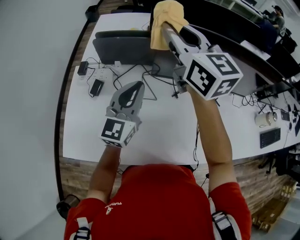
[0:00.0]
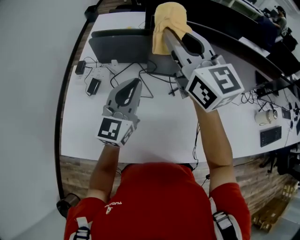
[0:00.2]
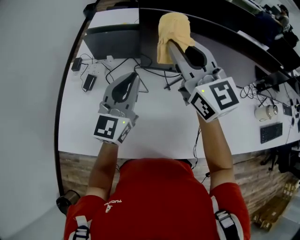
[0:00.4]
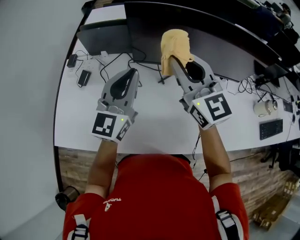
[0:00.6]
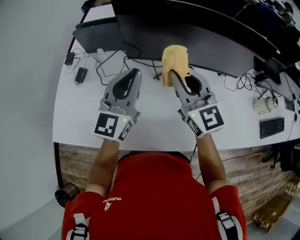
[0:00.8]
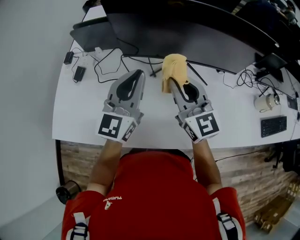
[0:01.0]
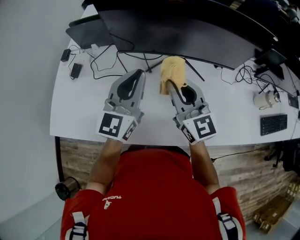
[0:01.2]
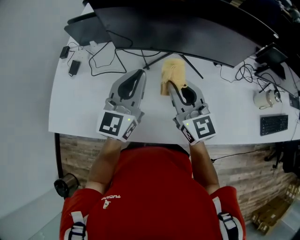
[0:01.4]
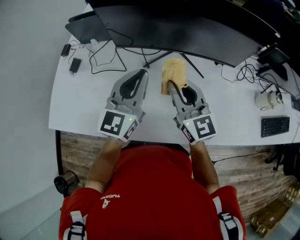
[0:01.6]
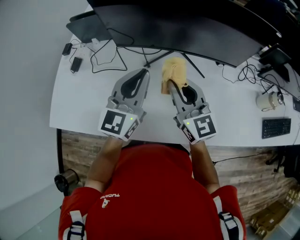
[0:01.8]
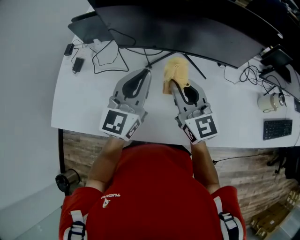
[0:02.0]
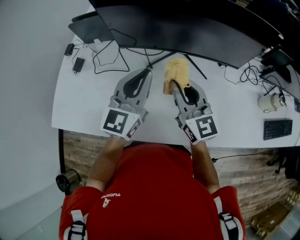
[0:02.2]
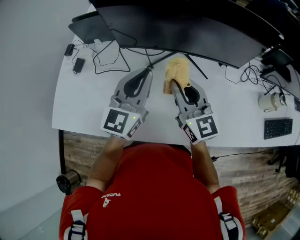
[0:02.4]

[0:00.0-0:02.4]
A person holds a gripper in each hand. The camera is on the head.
0:00.0 to 0:01.2: The right gripper shifts some 35 cm to the right, downward and backward; the left gripper goes about 20 cm to the right and backward.
0:01.2 to 0:02.4: The grippers make only small movements.

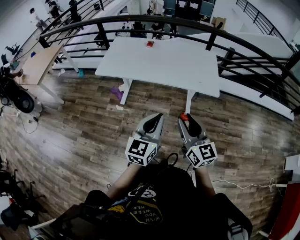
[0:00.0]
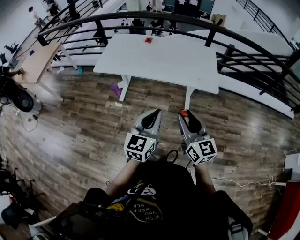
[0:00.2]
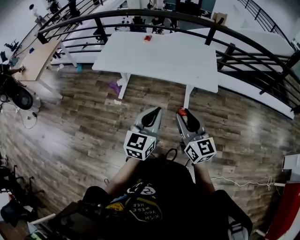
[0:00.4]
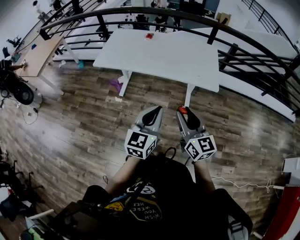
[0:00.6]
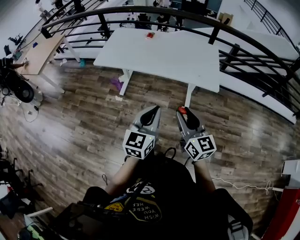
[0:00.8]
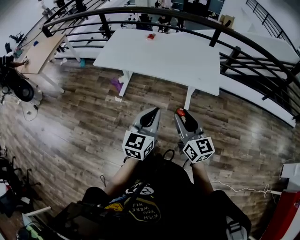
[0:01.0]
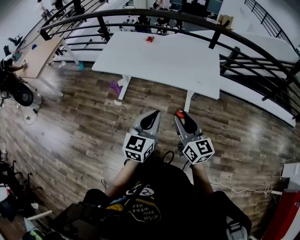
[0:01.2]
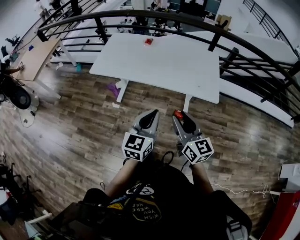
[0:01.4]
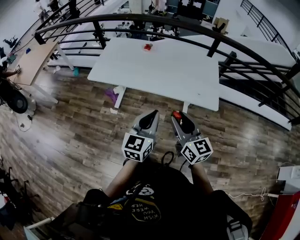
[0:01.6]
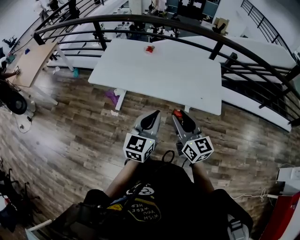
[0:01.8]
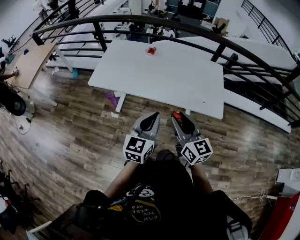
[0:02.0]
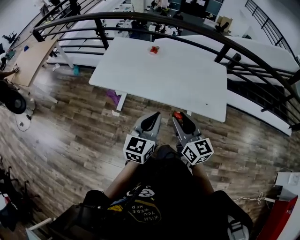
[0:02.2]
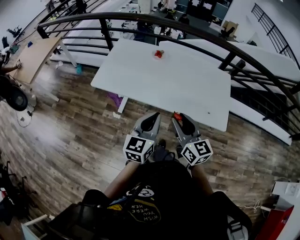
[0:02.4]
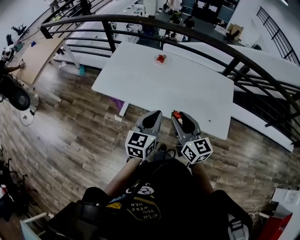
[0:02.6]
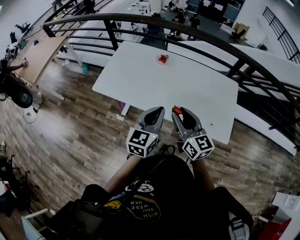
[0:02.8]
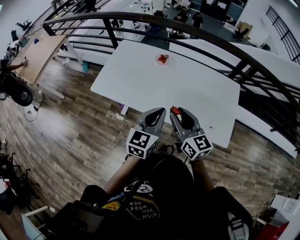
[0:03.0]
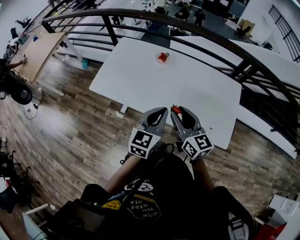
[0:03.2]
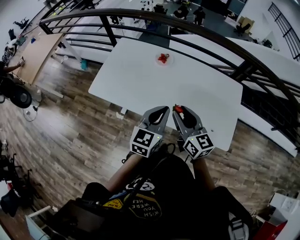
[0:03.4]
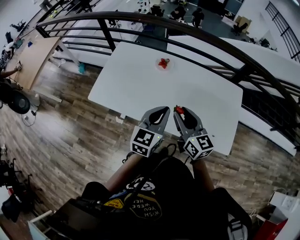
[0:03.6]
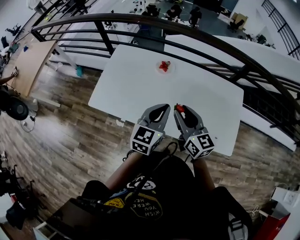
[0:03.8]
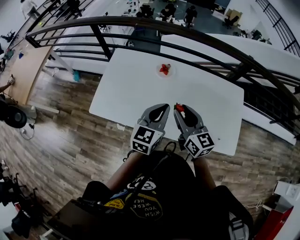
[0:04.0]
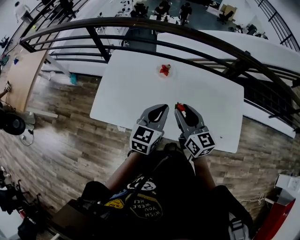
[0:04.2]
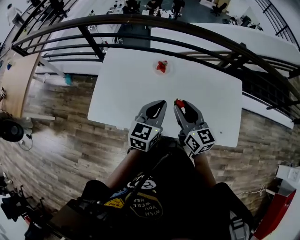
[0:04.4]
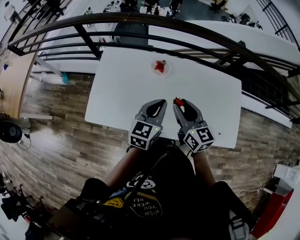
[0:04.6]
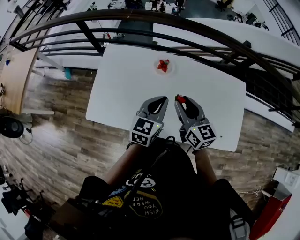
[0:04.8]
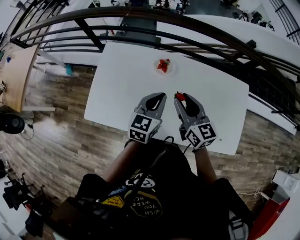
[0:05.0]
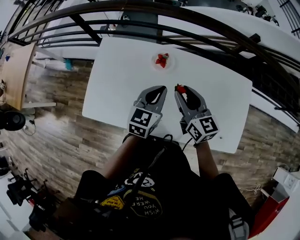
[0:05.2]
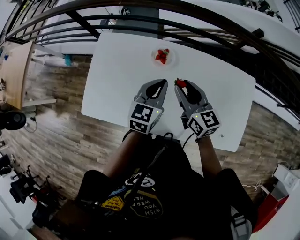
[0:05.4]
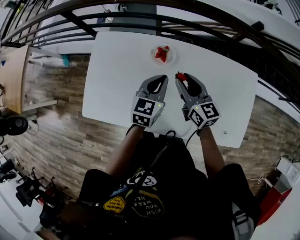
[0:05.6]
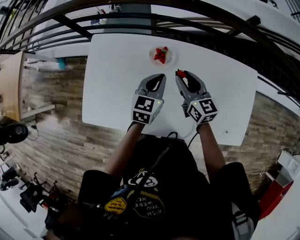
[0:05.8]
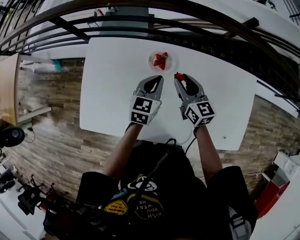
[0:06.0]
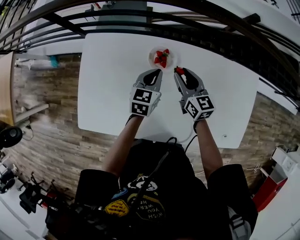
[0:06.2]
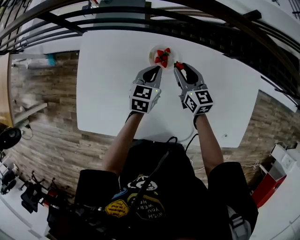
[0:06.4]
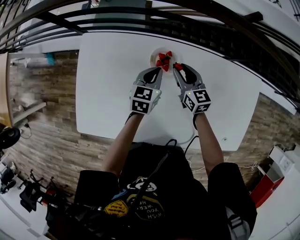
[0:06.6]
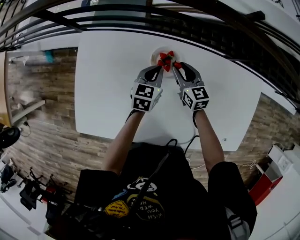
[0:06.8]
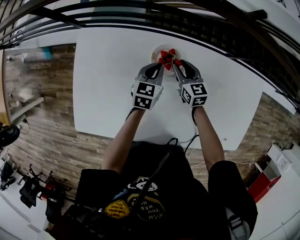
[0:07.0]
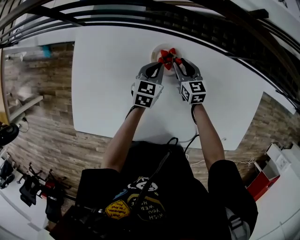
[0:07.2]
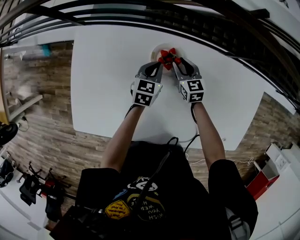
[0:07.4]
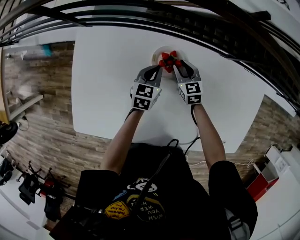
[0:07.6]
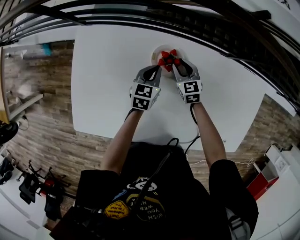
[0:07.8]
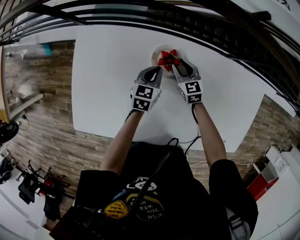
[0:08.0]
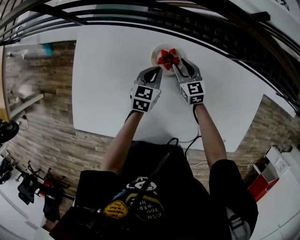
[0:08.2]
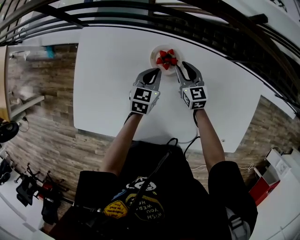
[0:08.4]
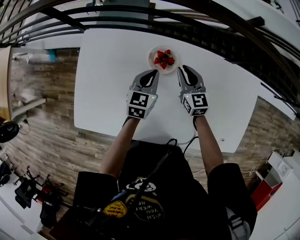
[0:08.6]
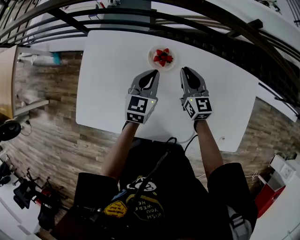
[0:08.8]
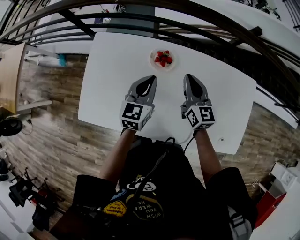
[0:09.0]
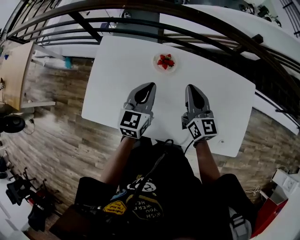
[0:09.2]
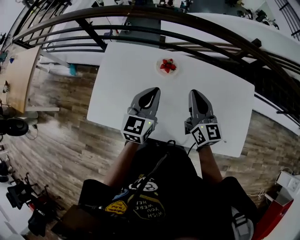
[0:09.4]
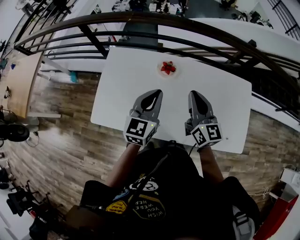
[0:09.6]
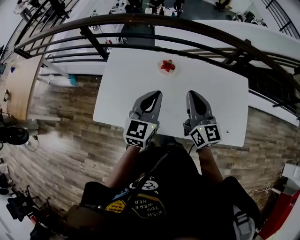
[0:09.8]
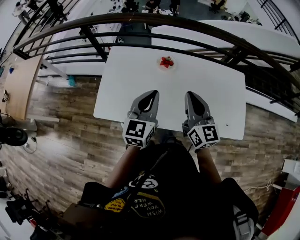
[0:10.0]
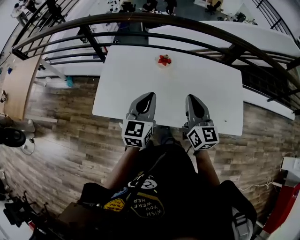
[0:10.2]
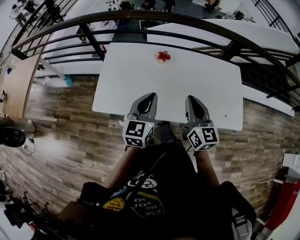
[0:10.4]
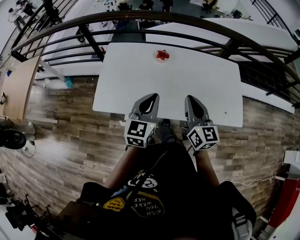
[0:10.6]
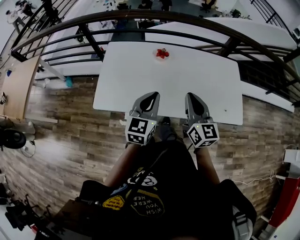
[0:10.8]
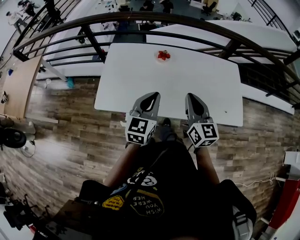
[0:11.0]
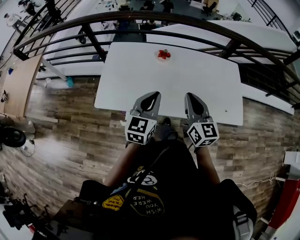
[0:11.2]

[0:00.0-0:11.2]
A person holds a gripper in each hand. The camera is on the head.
0:00.0 to 0:01.6: Both grippers travel together forward, approximately 15 cm.
0:01.6 to 0:03.2: The two grippers go about 30 cm forward.
0:03.2 to 0:04.8: The two grippers go some 25 cm forward and to the left.
0:04.8 to 0:06.4: Both grippers move forward and downward, some 30 cm.
0:06.4 to 0:08.0: The left gripper shifts about 10 cm downward. Meanwhile the right gripper travels downward by some 15 cm, and rotates some 20 degrees.
0:08.0 to 0:09.6: Both grippers move upward and backward, approximately 40 cm. The left gripper turns by roughly 30 degrees, while the right gripper points its fingers roughly 40 degrees further upward, and closes its fingers.
0:09.6 to 0:11.2: Both grippers travel together backward, roughly 20 cm.

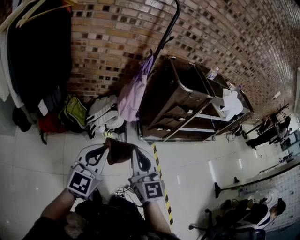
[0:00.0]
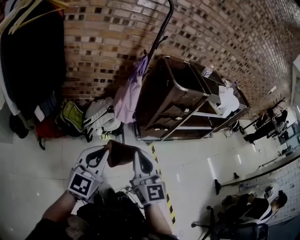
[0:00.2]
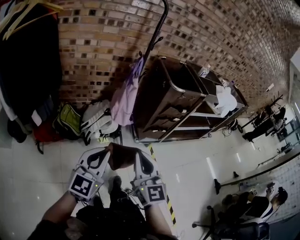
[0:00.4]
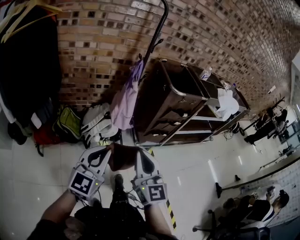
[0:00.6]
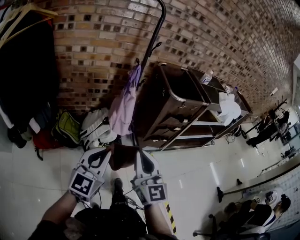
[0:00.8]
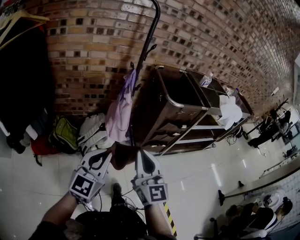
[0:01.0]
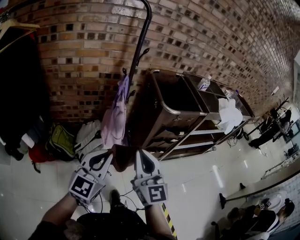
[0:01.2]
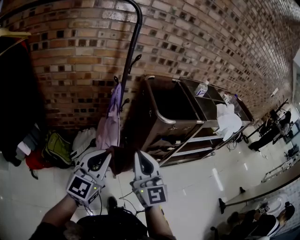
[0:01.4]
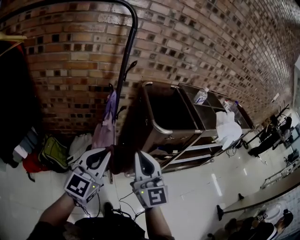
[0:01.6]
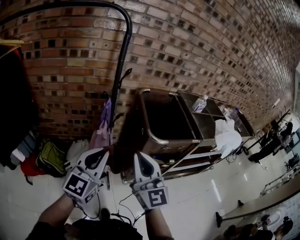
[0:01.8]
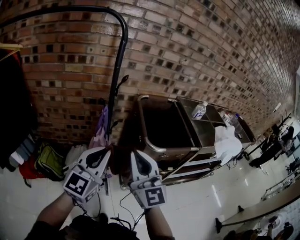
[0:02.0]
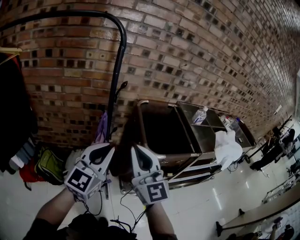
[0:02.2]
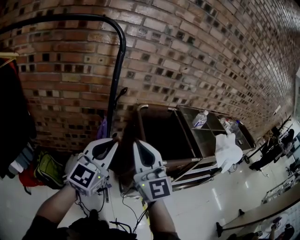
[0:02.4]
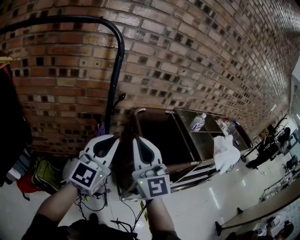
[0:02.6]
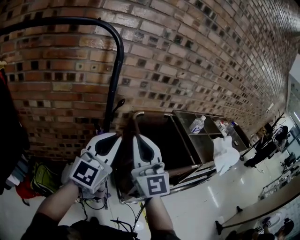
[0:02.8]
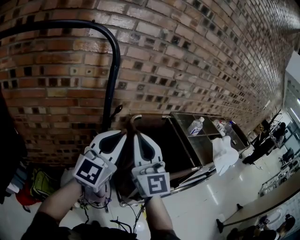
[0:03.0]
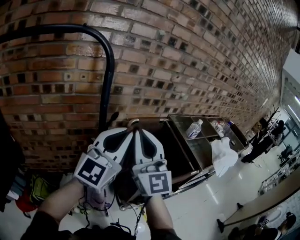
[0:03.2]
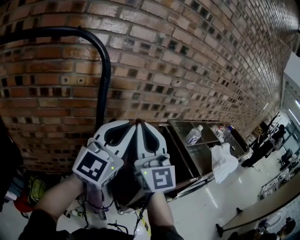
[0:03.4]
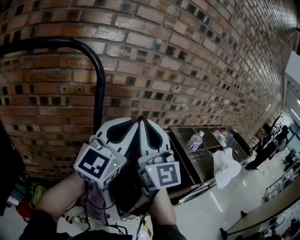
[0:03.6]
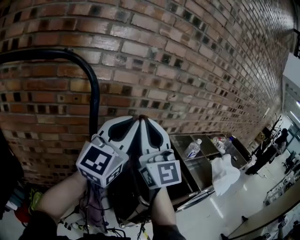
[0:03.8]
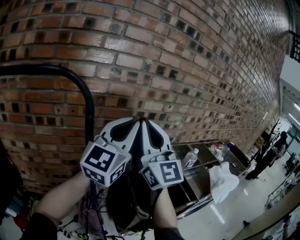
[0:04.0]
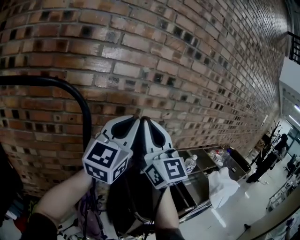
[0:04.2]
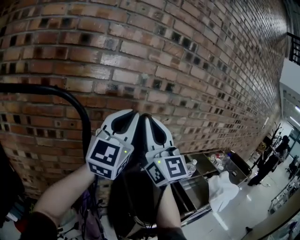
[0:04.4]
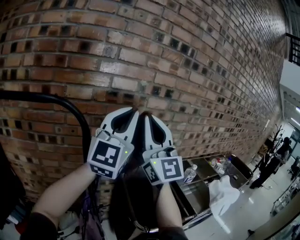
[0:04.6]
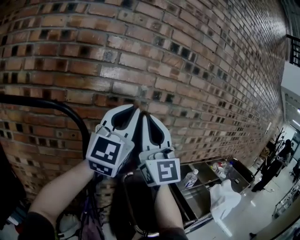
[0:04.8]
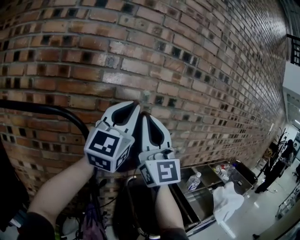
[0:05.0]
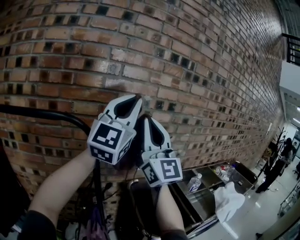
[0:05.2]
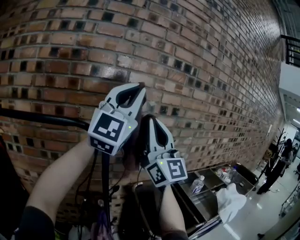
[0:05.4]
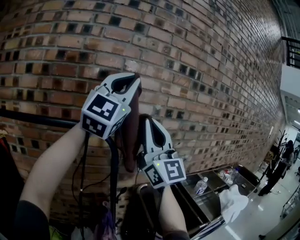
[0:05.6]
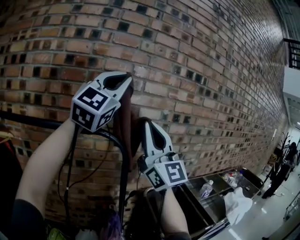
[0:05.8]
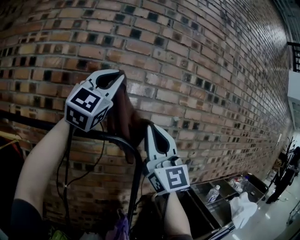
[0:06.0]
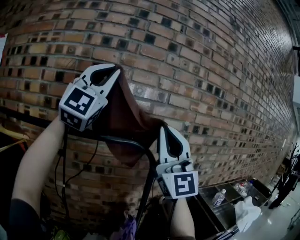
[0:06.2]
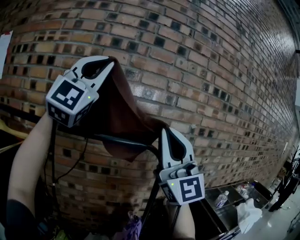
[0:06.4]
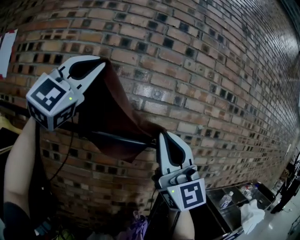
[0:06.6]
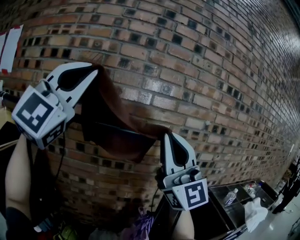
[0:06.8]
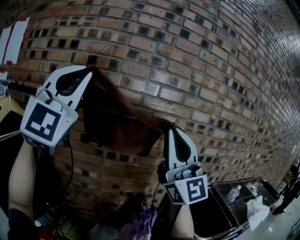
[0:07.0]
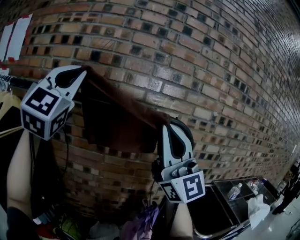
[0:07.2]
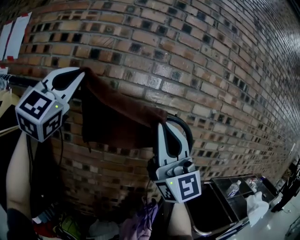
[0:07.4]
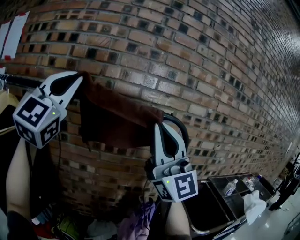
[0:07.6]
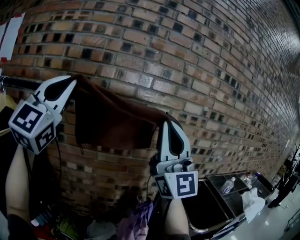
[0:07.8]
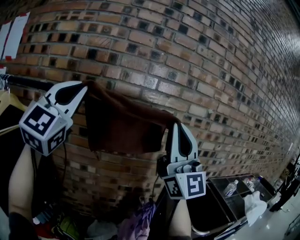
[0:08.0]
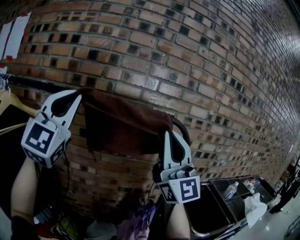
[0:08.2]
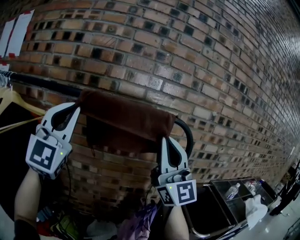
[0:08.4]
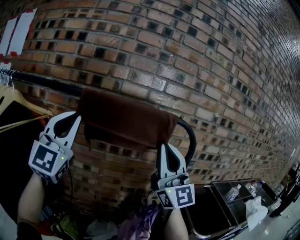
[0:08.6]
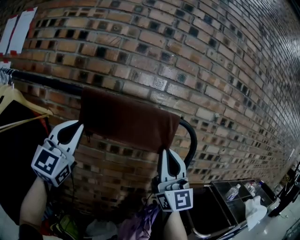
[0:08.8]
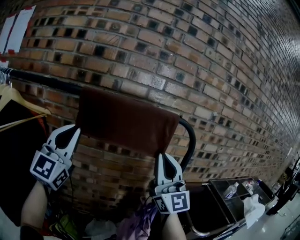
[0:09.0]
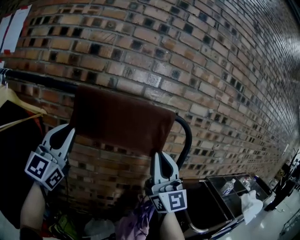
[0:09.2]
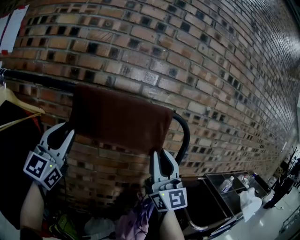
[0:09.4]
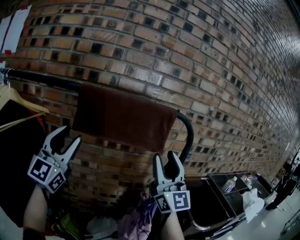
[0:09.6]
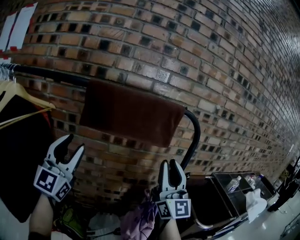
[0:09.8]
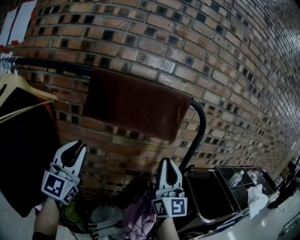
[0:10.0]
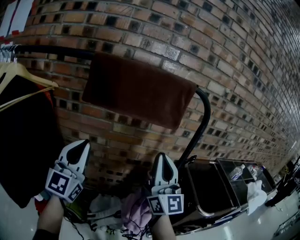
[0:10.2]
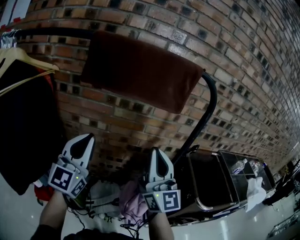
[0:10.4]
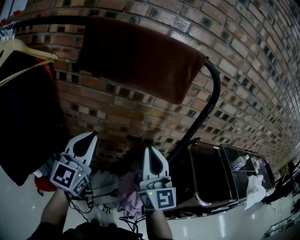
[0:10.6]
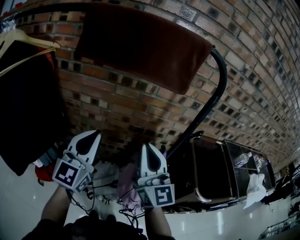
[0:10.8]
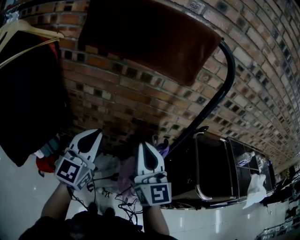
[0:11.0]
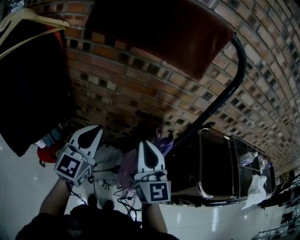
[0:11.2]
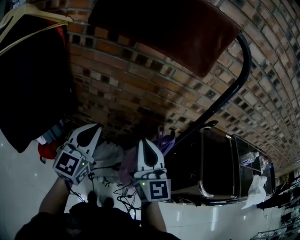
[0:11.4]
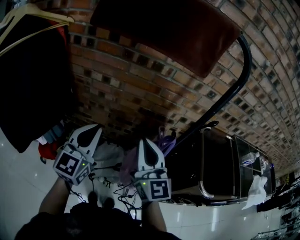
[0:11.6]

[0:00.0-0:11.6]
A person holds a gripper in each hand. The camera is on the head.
0:00.0 to 0:01.4: The two grippers go approximately 30 cm forward and to the right.
0:01.4 to 0:02.8: Both grippers travel together forward and upward, about 30 cm.
0:02.8 to 0:04.4: The grippers both shift upward and forward by some 30 cm.
0:04.4 to 0:05.8: The left gripper is displaced upward and to the left by some 30 cm, and swivels some 20 degrees. The right gripper goes about 15 cm to the left and upward.
0:05.8 to 0:07.2: The right gripper moves about 20 cm. Meanwhile the left gripper shifts by approximately 40 cm, and rotates about 30 degrees.
0:07.2 to 0:08.8: The right gripper shifts approximately 10 cm downward, while the left gripper goes approximately 15 cm downward.
0:08.8 to 0:10.2: The two grippers go approximately 15 cm downward. The right gripper opens and closes again; the left gripper opens, then closes again.
0:10.2 to 0:11.6: The left gripper goes about 15 cm downward and to the right, and turns by about 20 degrees. The right gripper heads downward, covering roughly 15 cm, and changes its angle by some 30 degrees.
